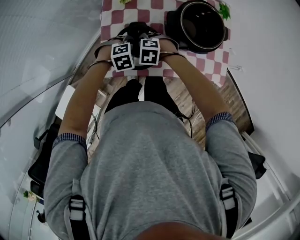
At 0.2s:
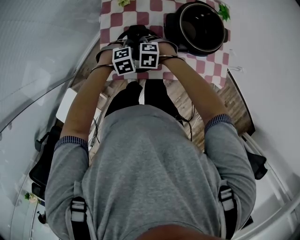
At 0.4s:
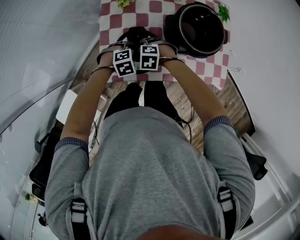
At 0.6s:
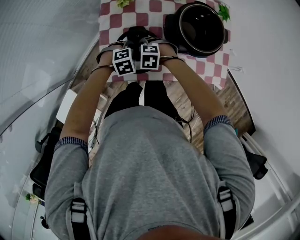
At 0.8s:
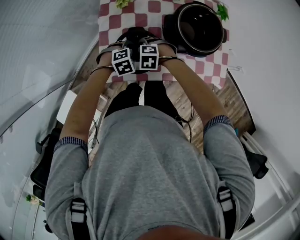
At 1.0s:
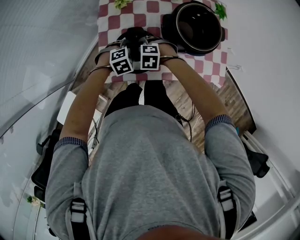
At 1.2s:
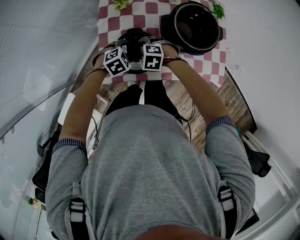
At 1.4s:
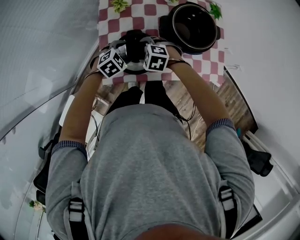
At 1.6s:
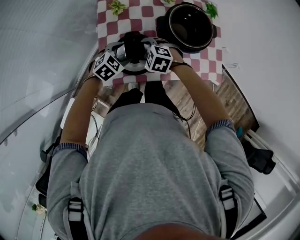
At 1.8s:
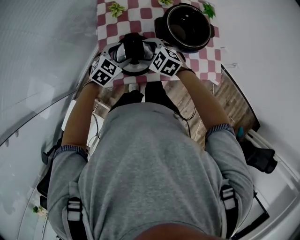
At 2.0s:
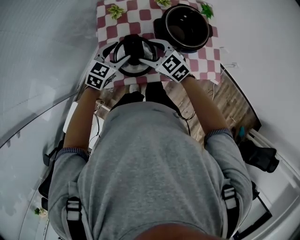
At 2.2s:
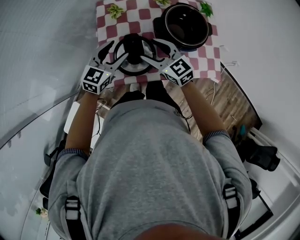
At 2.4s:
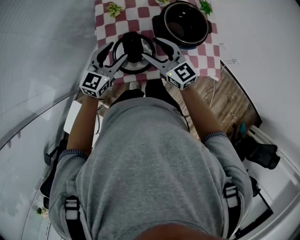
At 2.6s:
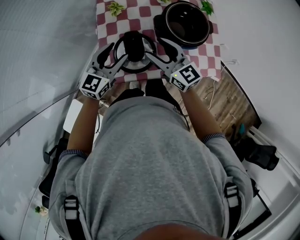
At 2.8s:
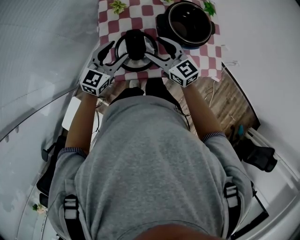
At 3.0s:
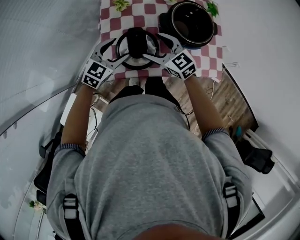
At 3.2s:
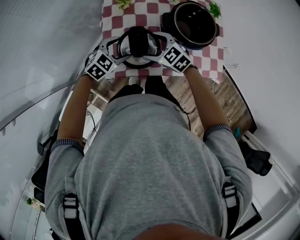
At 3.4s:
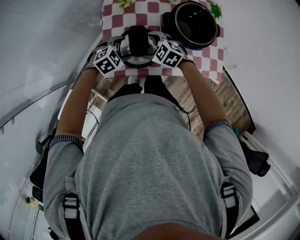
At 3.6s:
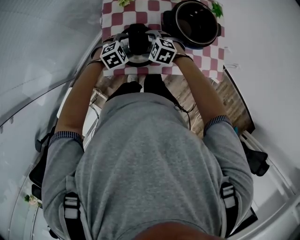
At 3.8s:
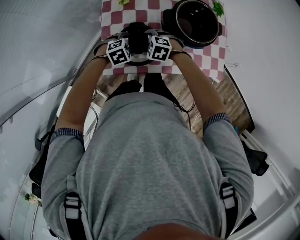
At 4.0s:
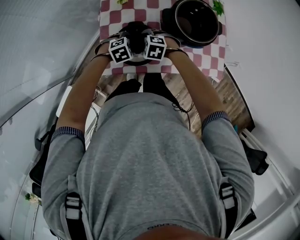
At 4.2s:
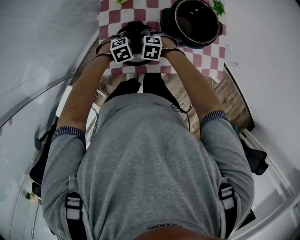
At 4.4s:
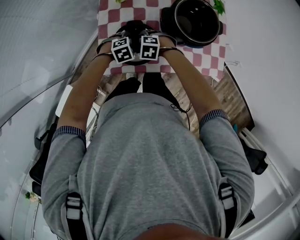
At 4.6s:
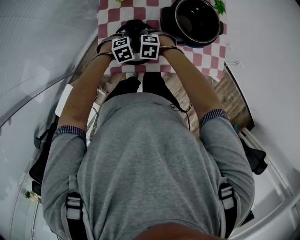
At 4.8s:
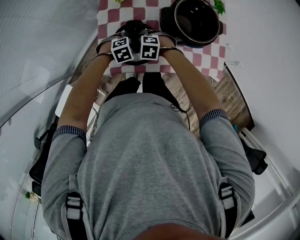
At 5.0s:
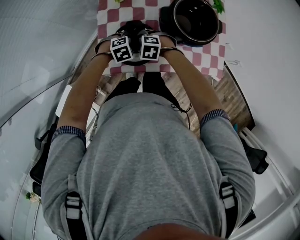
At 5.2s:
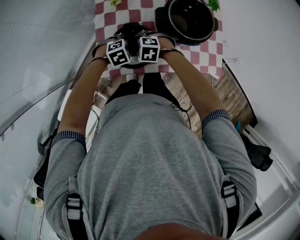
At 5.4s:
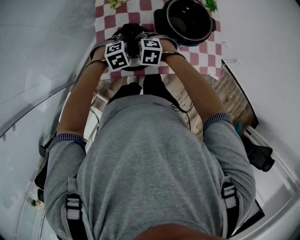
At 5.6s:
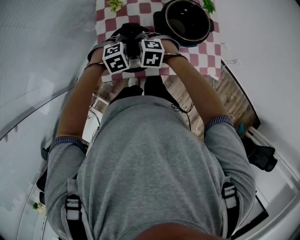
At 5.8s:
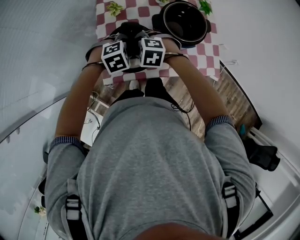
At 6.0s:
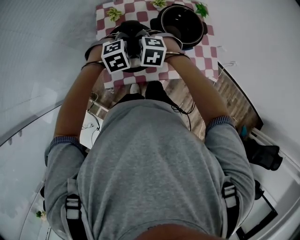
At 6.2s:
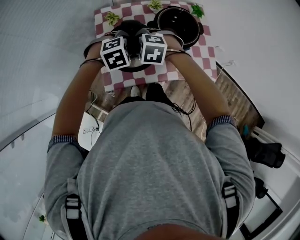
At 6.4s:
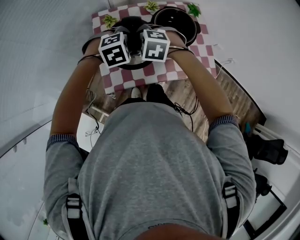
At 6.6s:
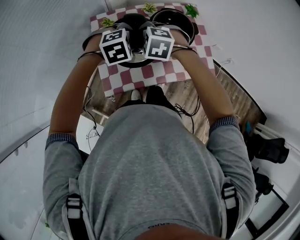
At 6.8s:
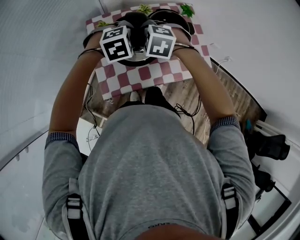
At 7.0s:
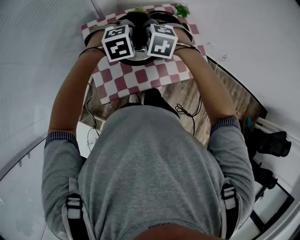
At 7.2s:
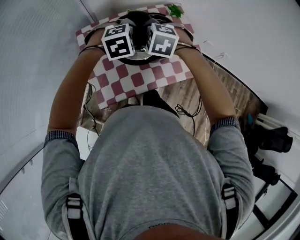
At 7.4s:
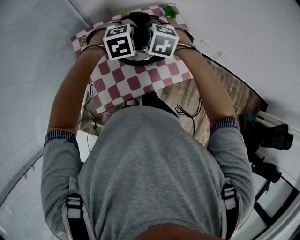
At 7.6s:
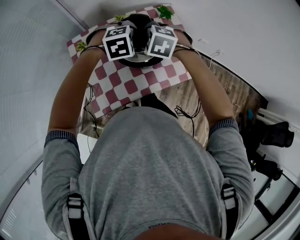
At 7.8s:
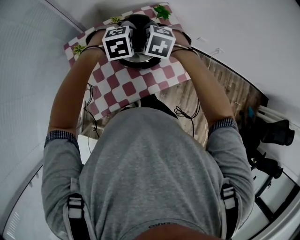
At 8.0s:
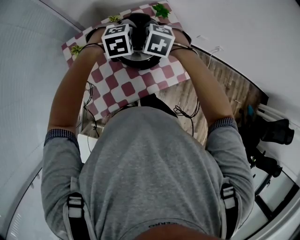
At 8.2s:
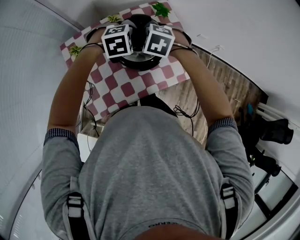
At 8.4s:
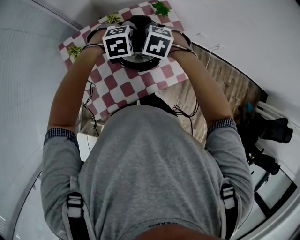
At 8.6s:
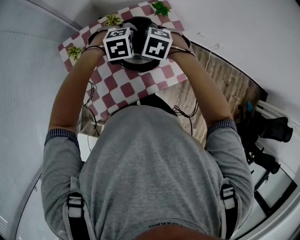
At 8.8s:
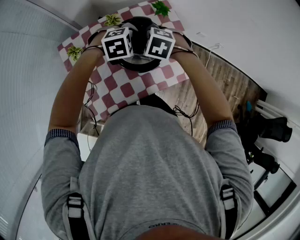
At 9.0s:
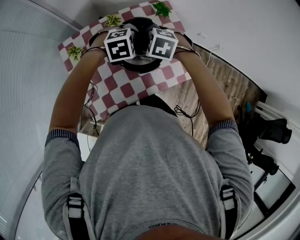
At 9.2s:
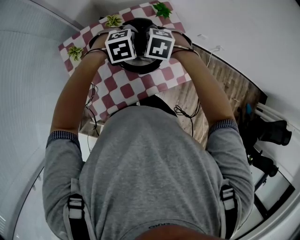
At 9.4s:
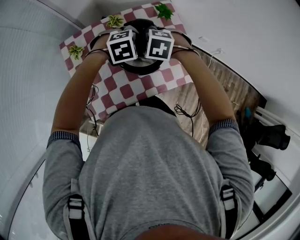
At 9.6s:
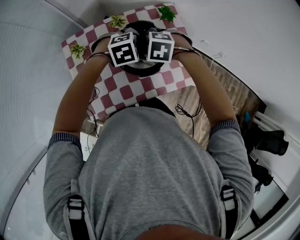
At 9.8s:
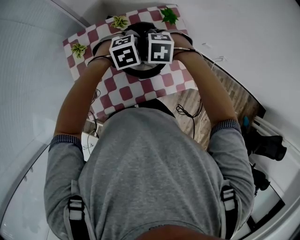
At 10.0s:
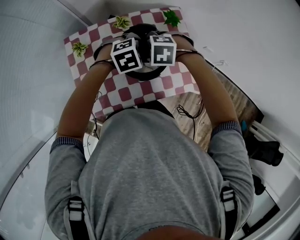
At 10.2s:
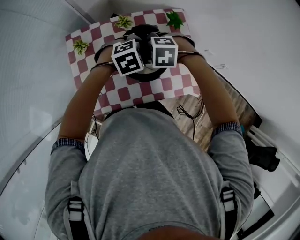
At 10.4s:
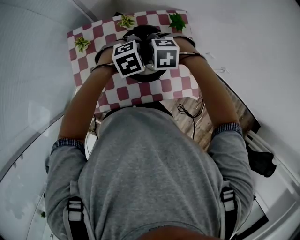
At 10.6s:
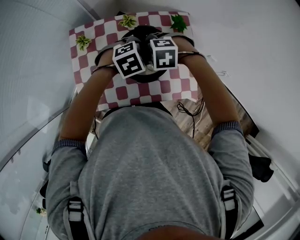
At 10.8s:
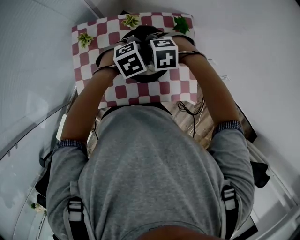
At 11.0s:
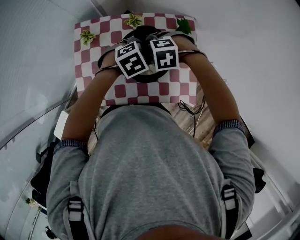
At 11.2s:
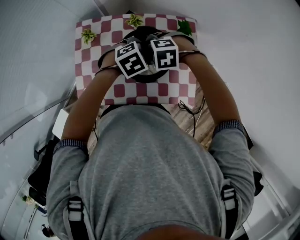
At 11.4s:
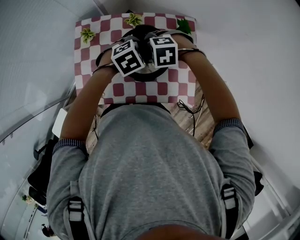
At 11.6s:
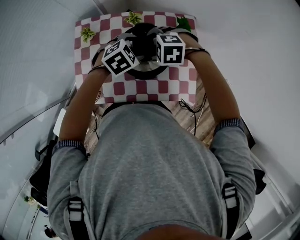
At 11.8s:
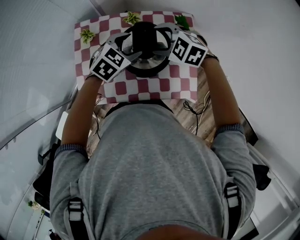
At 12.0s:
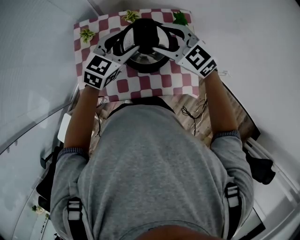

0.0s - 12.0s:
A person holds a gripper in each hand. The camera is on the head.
0.0s - 1.6s: The grippers both shift upward by about 5 cm. The left gripper swivels some 20 degrees.
1.6s - 3.0s: The grippers both shift upward by some 10 cm. The right gripper tips its fingers upward by about 40 degrees, while the left gripper swivels some 20 degrees.
3.0s - 4.4s: The grippers both shift downward by approximately 20 cm. The right gripper angles its fingers downward, by approximately 50 degrees. Meanwhile the left gripper points its fingers roughly 40 degrees further downward.
4.4s - 6.0s: The two grippers go some 20 cm upward.
6.0s - 7.6s: The two grippers go about 25 cm to the right, forward and upward. The left gripper rotates about 20 degrees. Meanwhile the right gripper turns by some 20 degrees.
7.6s - 9.0s: The grippers both shift downward by approximately 5 cm.
9.0s - 10.4s: The left gripper turns by approximately 20 degrees. The right gripper rotates approximately 30 degrees.
10.4s - 12.0s: The two grippers go about 10 cm upward. The right gripper tips its fingers upward by approximately 50 degrees, while the left gripper tilts its fingers approximately 40 degrees upward.

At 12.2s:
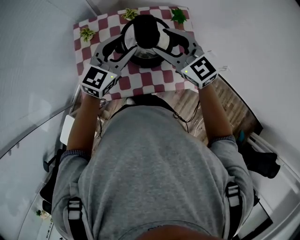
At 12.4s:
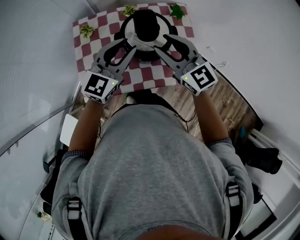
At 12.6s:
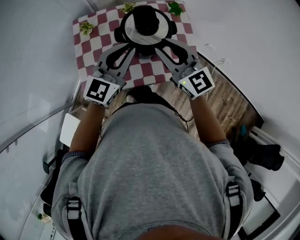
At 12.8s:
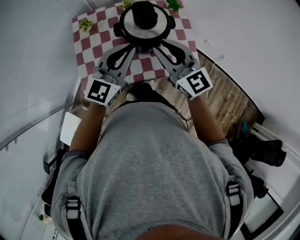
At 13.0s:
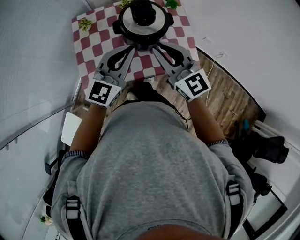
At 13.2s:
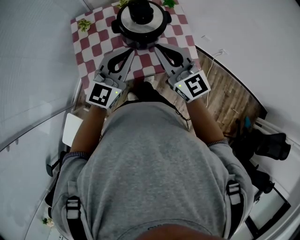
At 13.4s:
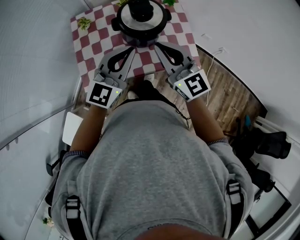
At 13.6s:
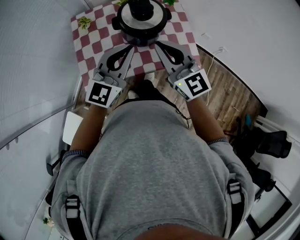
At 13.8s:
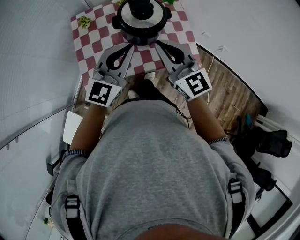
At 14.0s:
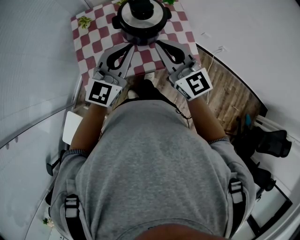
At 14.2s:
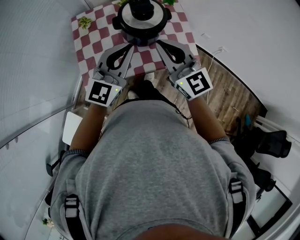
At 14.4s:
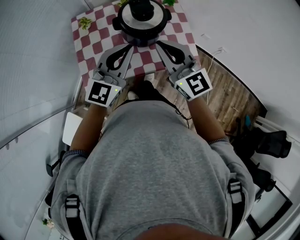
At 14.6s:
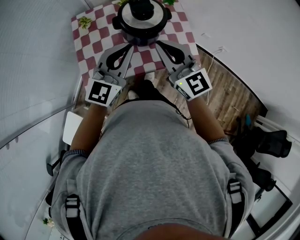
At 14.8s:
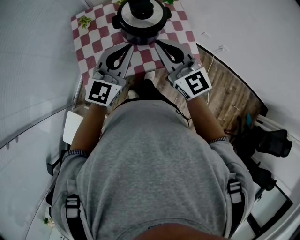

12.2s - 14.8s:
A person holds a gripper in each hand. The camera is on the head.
12.2s - 13.4s: The grippers both shift backward by approximately 15 cm. The left gripper closes its fingers. Meanwhile the right gripper turns by roughly 20 degrees, and closes up.
13.4s - 14.8s: Both grippers stay about where they are.

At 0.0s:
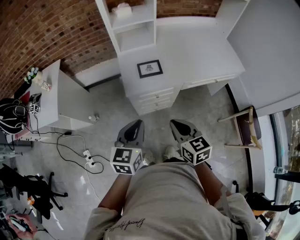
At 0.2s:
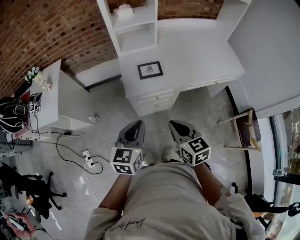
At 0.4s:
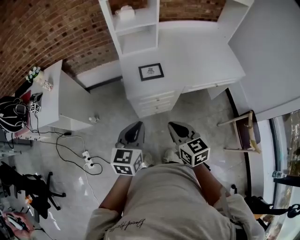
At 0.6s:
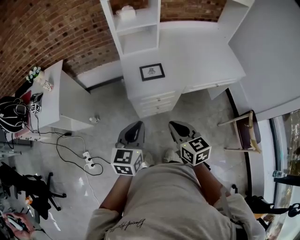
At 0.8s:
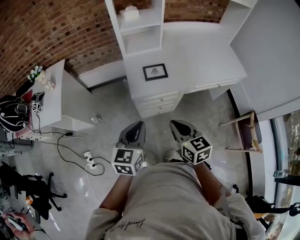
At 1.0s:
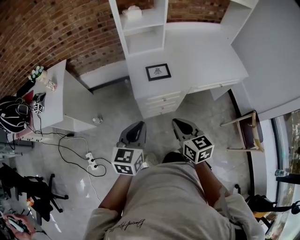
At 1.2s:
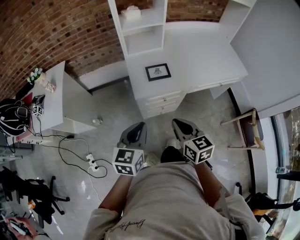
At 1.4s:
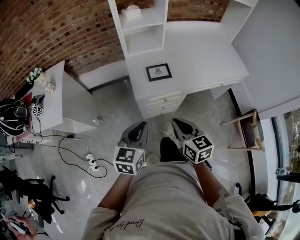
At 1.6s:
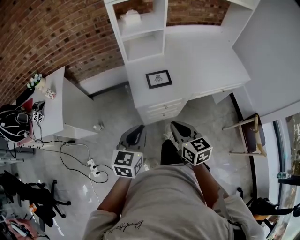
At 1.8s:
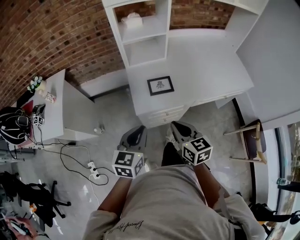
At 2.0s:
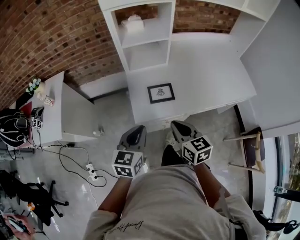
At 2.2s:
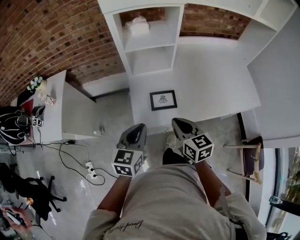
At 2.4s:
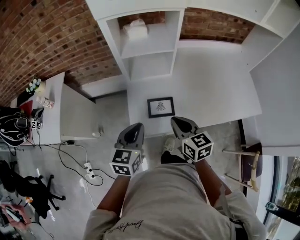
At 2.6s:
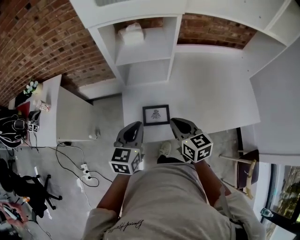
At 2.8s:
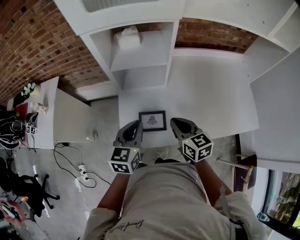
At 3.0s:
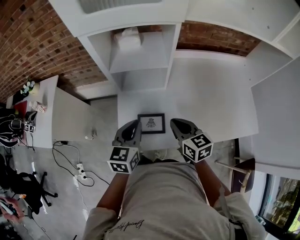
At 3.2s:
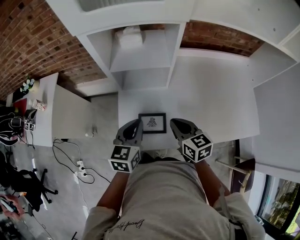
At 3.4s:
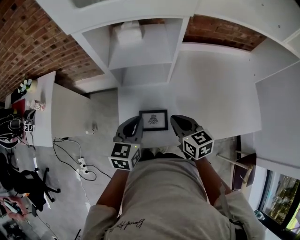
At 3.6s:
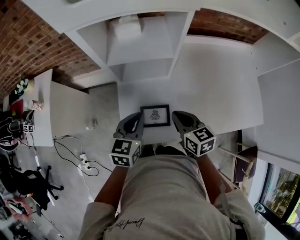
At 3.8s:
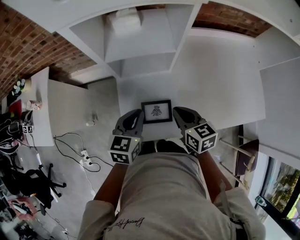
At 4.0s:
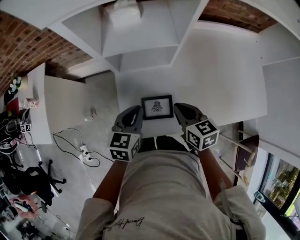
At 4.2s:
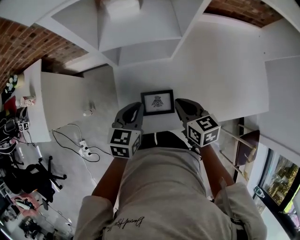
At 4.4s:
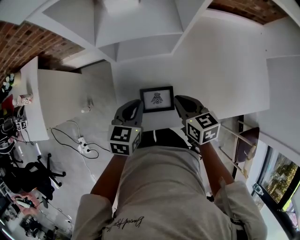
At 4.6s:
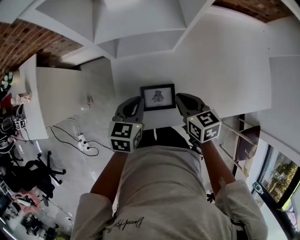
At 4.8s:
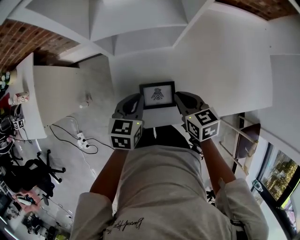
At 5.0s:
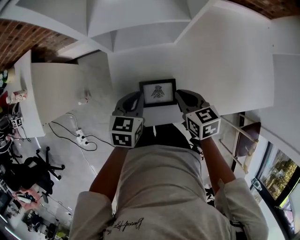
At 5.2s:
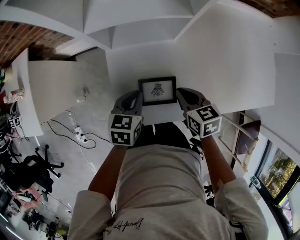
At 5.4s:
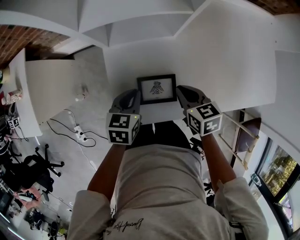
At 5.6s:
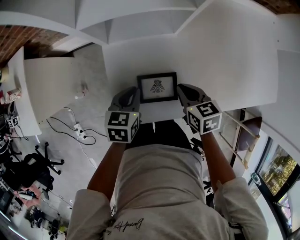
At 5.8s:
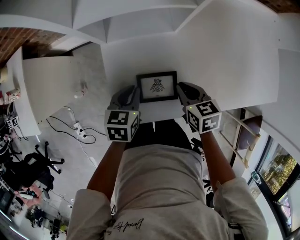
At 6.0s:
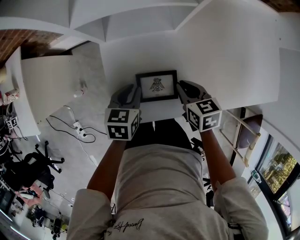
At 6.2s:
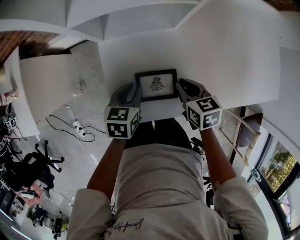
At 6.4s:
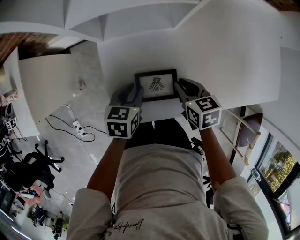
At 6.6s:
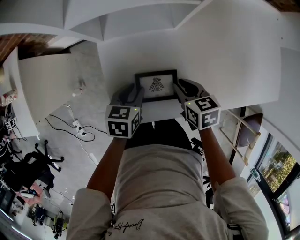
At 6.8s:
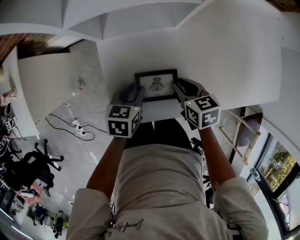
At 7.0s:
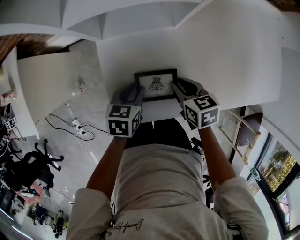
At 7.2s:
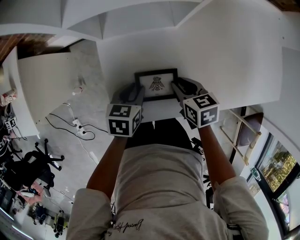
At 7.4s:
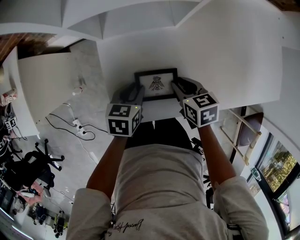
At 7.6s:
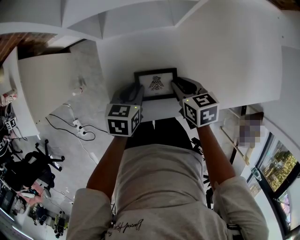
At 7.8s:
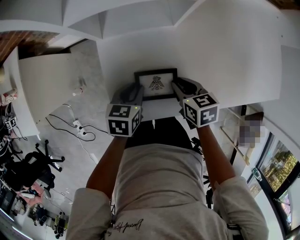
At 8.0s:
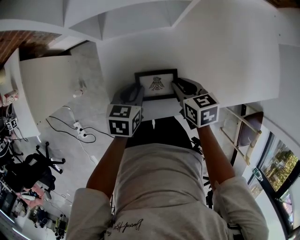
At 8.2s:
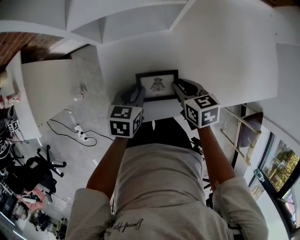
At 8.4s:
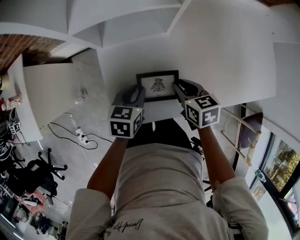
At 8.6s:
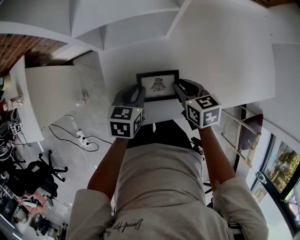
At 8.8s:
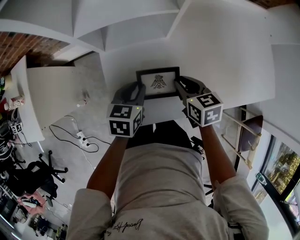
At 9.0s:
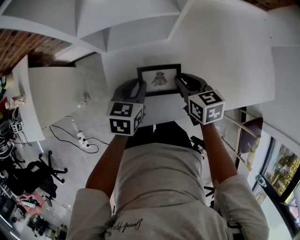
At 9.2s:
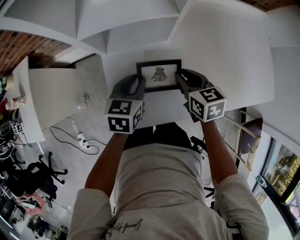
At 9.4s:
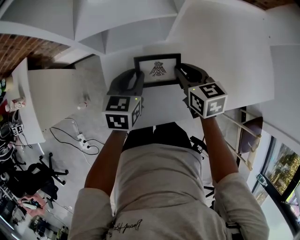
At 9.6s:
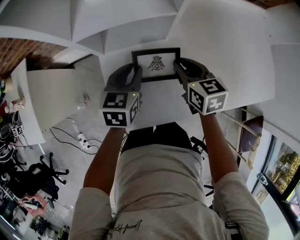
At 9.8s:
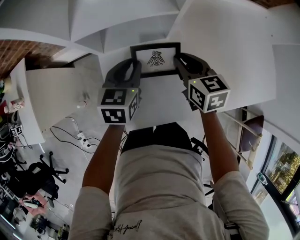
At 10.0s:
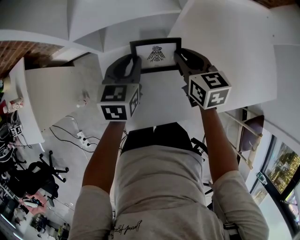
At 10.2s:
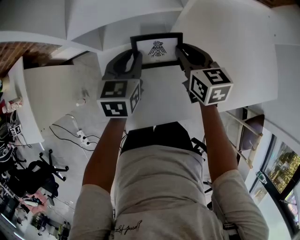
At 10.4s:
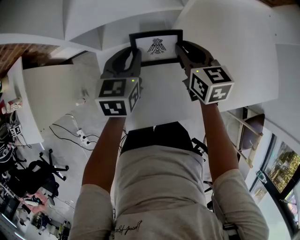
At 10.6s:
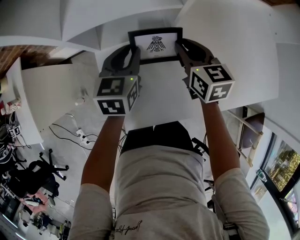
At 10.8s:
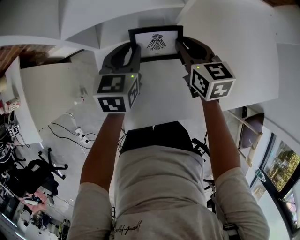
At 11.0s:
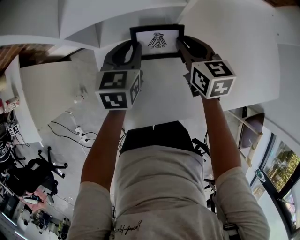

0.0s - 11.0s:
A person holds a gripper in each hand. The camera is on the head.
0.0s - 1.6s: The left gripper moves some 5 cm, while the right gripper is displaced forward by some 5 cm.
1.6s - 3.2s: Both grippers move forward, roughly 30 cm.
3.2s - 4.8s: Both grippers move downward, some 10 cm.
4.8s - 6.2s: Both grippers move downward, approximately 5 cm. The left gripper opens up.
6.2s - 7.8s: The grippers move only a little.
7.8s - 9.4s: Both grippers move upward and forward, about 10 cm.
9.4s - 11.0s: Both grippers move forward, approximately 10 cm.
